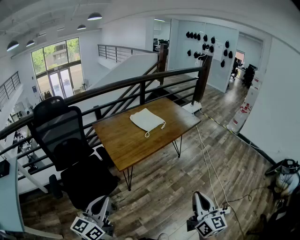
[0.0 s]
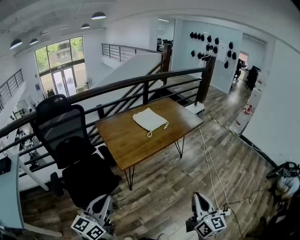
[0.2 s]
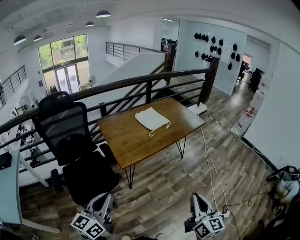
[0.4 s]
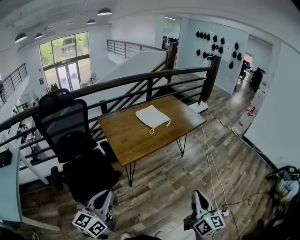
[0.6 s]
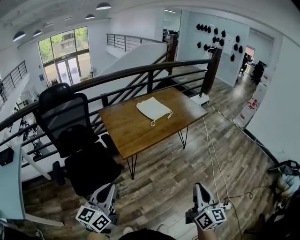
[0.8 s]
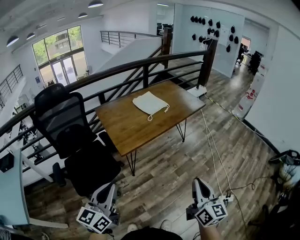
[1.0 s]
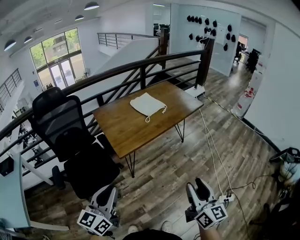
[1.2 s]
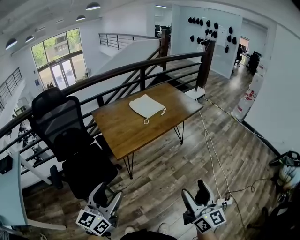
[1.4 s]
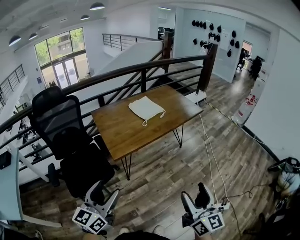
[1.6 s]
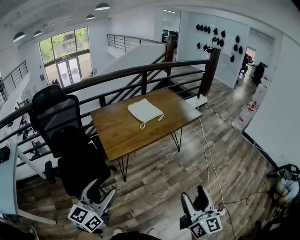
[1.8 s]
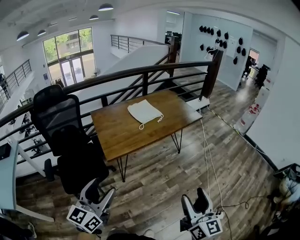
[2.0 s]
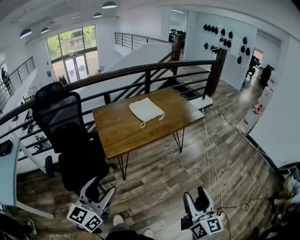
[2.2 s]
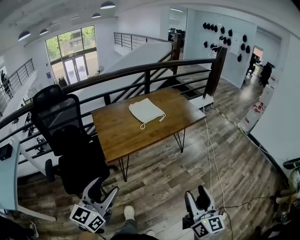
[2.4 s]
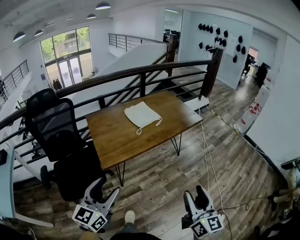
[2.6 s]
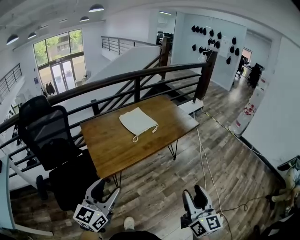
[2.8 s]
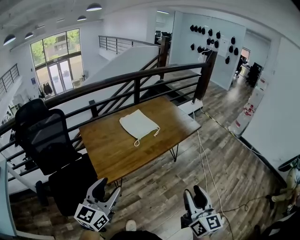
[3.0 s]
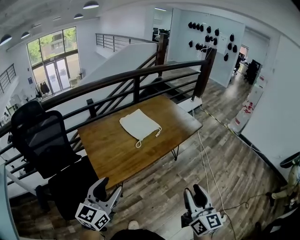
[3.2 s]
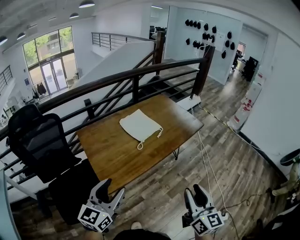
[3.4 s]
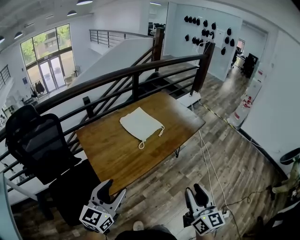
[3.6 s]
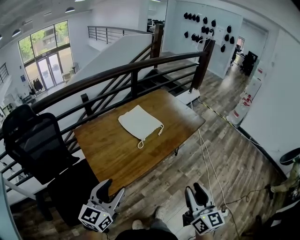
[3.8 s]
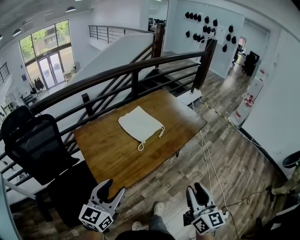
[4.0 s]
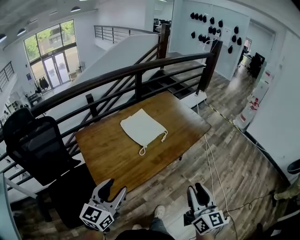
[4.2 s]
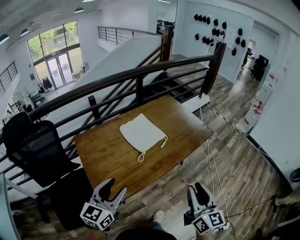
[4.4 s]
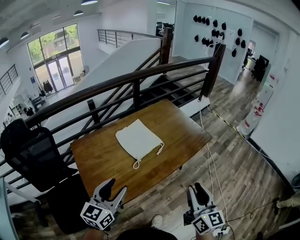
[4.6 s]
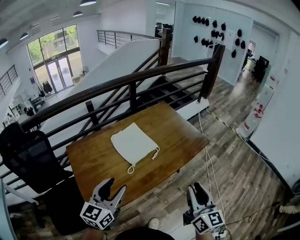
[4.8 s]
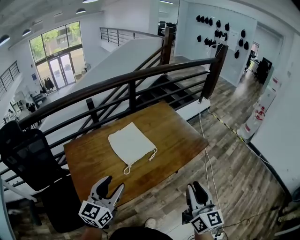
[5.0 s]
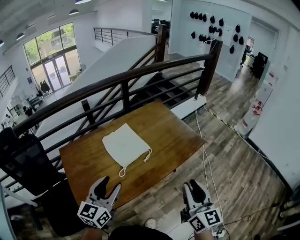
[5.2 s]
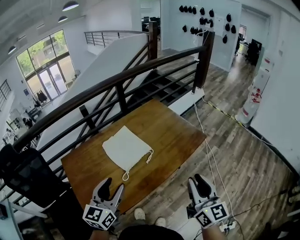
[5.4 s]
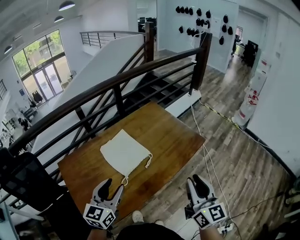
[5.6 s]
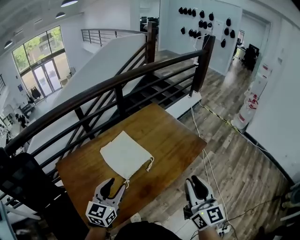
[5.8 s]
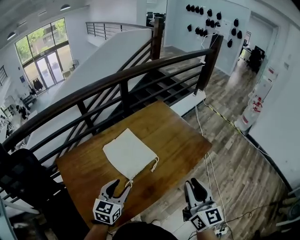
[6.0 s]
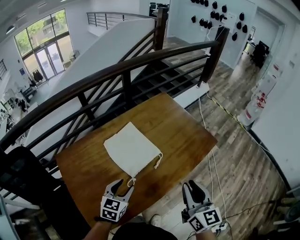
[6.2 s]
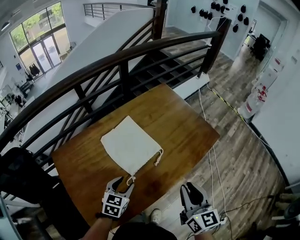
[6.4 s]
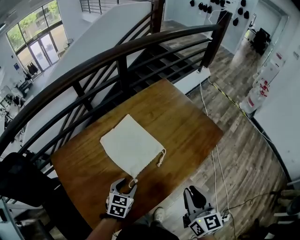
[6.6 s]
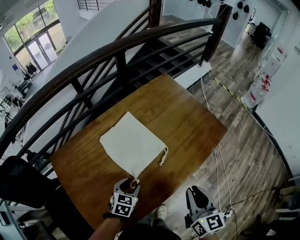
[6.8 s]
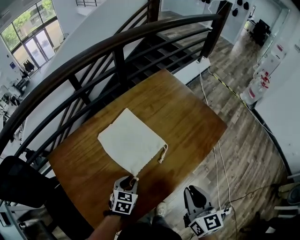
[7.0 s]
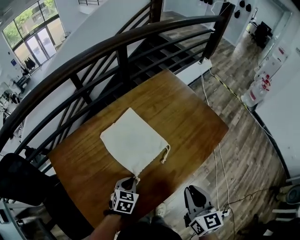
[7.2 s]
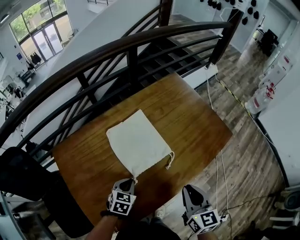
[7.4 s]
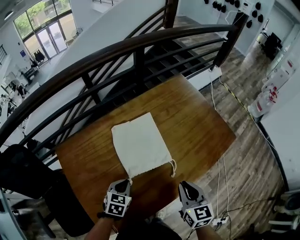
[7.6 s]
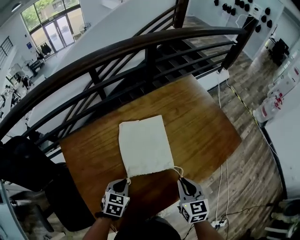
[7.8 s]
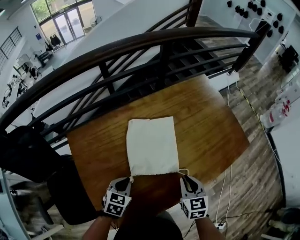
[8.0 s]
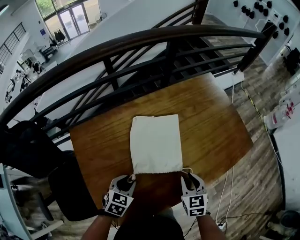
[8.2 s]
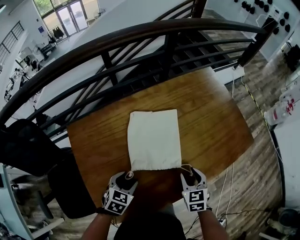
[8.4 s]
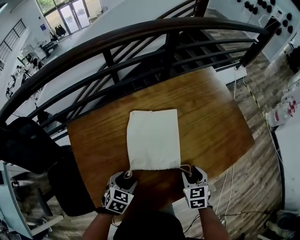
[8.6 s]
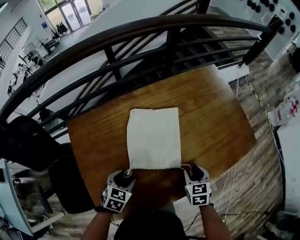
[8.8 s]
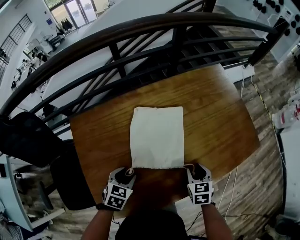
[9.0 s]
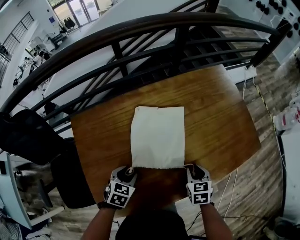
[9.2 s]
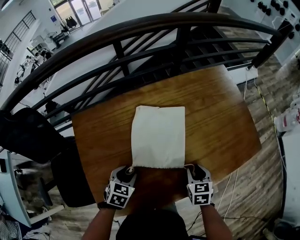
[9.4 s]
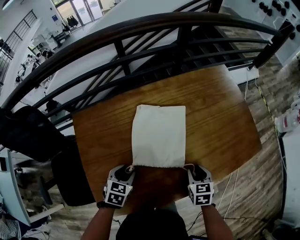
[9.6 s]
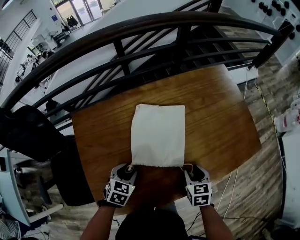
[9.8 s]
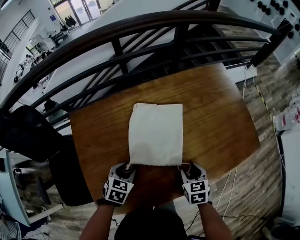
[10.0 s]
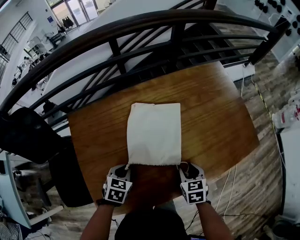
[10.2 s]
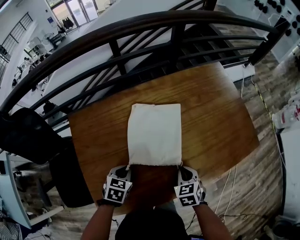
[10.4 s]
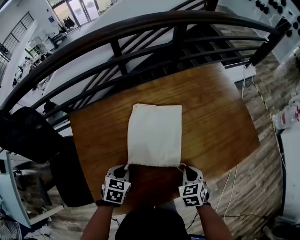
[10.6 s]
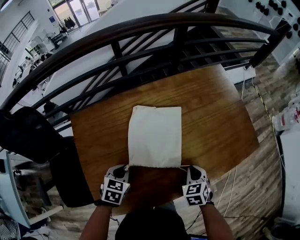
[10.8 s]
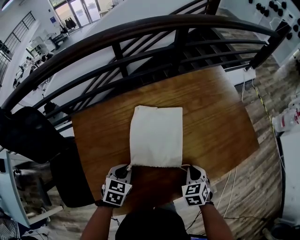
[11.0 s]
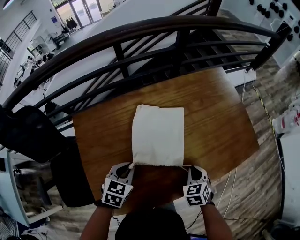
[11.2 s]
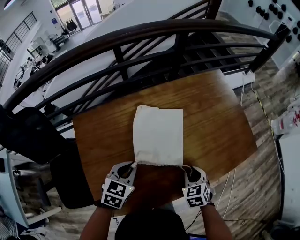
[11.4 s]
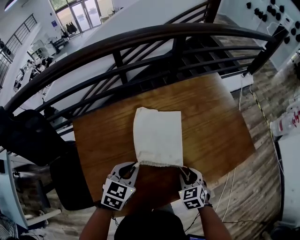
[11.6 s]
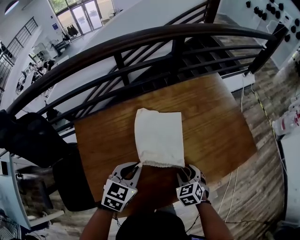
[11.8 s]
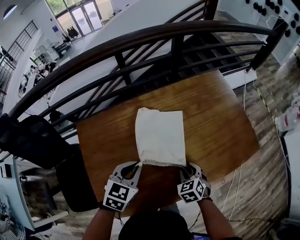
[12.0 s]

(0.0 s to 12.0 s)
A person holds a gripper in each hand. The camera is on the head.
0.0 s - 1.6 s: The right gripper opens up. Meanwhile the left gripper travels to the right by some 5 cm, and opens up.
1.6 s - 3.0 s: Both grippers move forward, about 20 cm. The right gripper closes up.
3.0 s - 4.4 s: The two grippers go roughly 20 cm forward.
4.4 s - 6.0 s: The left gripper travels forward and downward by about 25 cm. The right gripper shifts roughly 20 cm forward.
6.0 s - 7.6 s: Both grippers travel together downward and to the left, roughly 20 cm. The right gripper changes its angle by about 30 degrees, while the left gripper changes its angle by about 30 degrees, and closes up.
7.6 s - 9.0 s: The right gripper moves downward and forward, about 15 cm, turns by approximately 30 degrees, and opens its fingers, while the left gripper is displaced to the left by approximately 5 cm, and opens.
9.0 s - 10.4 s: The right gripper shifts by some 5 cm, and closes its fingers. Meanwhile the left gripper closes up.
10.4 s - 12.0 s: The right gripper opens its fingers; the left gripper shifts roughly 15 cm upward and forward, and turns by roughly 20 degrees.

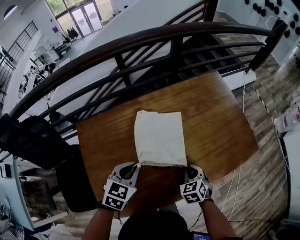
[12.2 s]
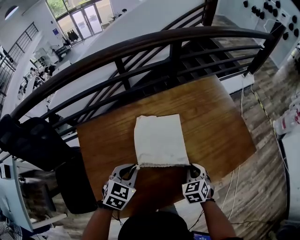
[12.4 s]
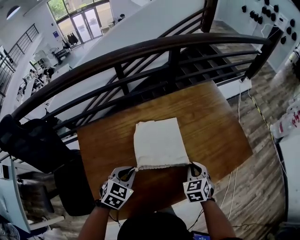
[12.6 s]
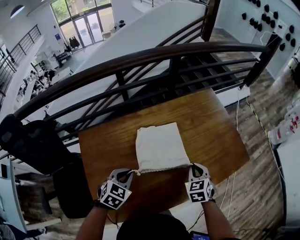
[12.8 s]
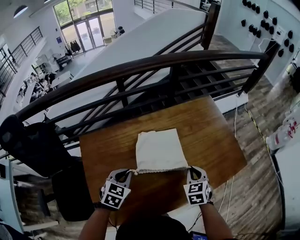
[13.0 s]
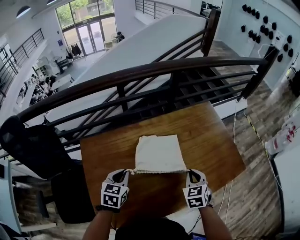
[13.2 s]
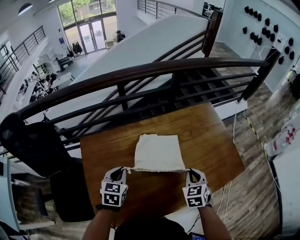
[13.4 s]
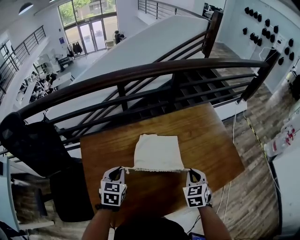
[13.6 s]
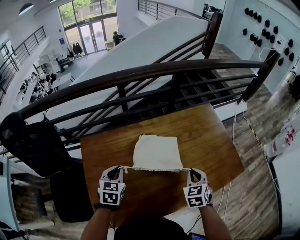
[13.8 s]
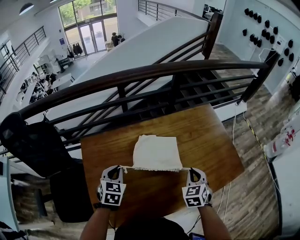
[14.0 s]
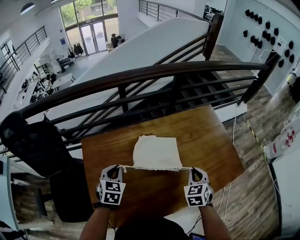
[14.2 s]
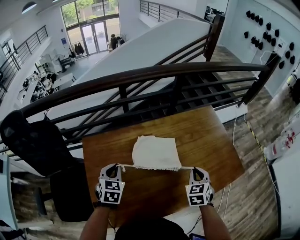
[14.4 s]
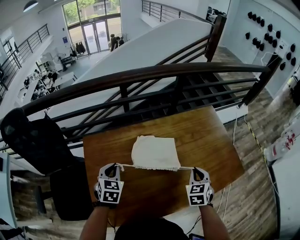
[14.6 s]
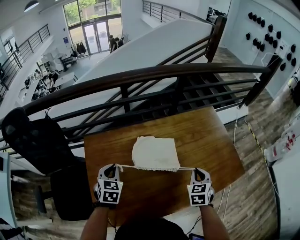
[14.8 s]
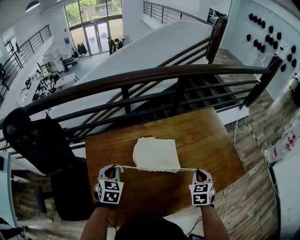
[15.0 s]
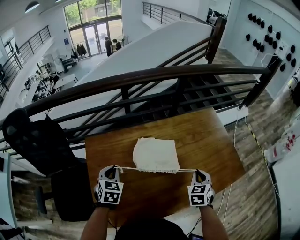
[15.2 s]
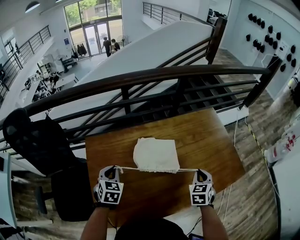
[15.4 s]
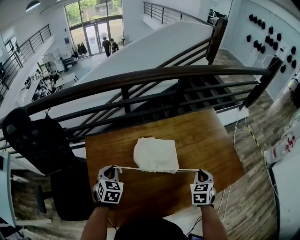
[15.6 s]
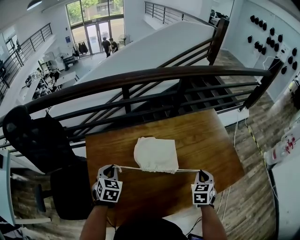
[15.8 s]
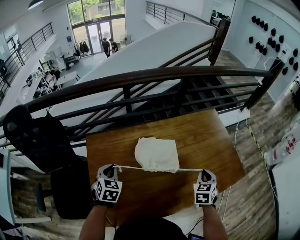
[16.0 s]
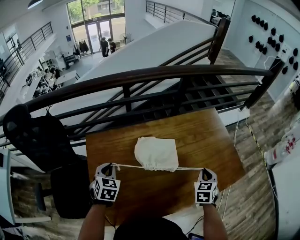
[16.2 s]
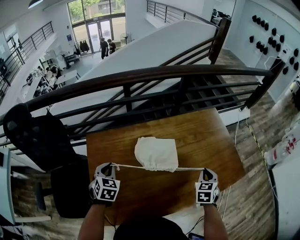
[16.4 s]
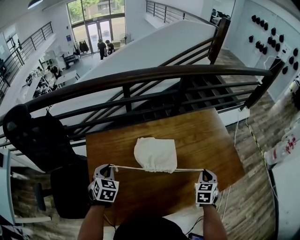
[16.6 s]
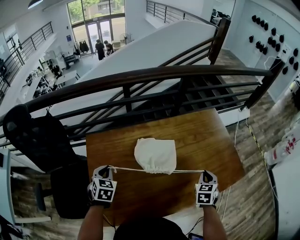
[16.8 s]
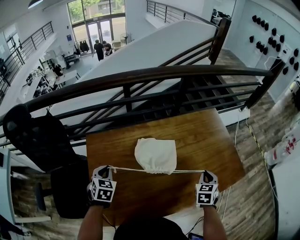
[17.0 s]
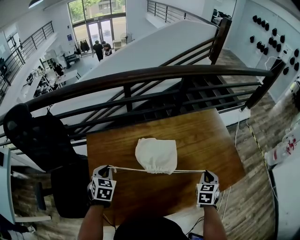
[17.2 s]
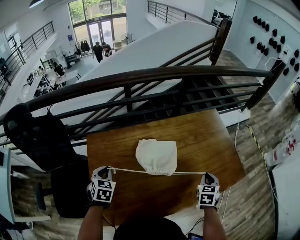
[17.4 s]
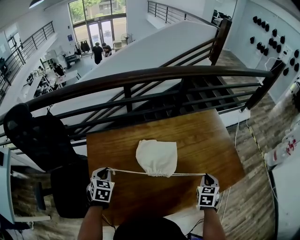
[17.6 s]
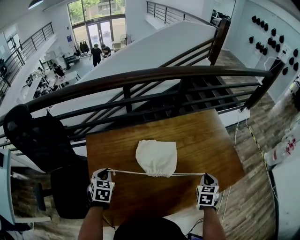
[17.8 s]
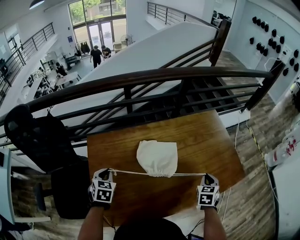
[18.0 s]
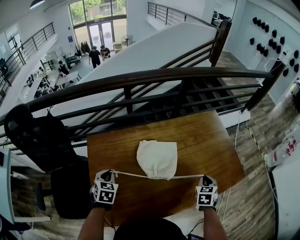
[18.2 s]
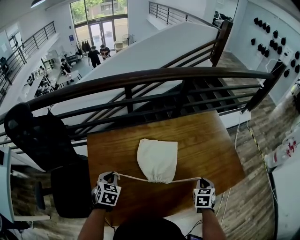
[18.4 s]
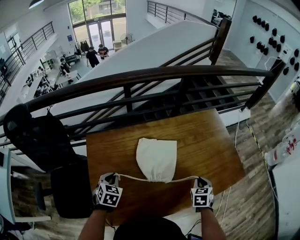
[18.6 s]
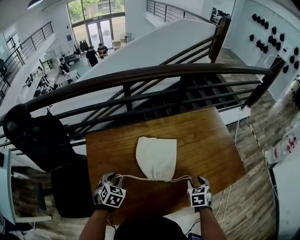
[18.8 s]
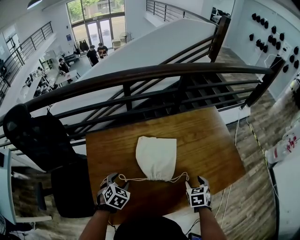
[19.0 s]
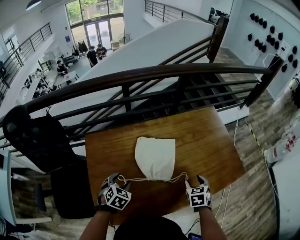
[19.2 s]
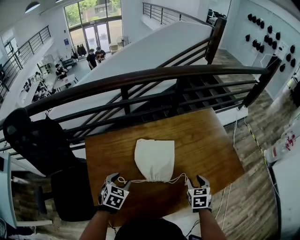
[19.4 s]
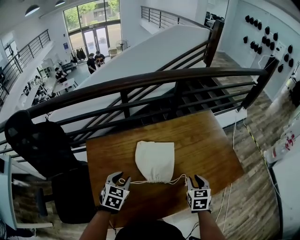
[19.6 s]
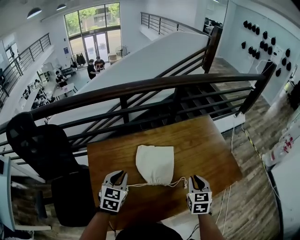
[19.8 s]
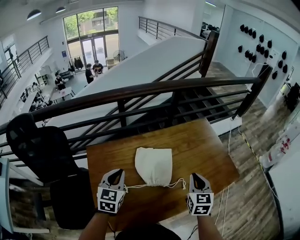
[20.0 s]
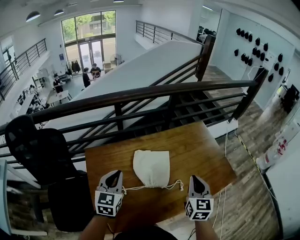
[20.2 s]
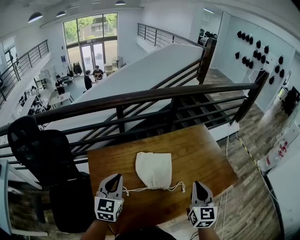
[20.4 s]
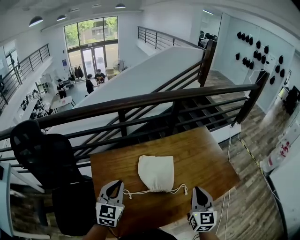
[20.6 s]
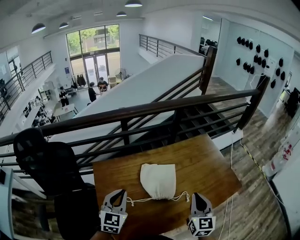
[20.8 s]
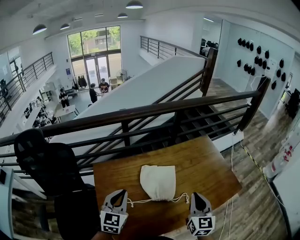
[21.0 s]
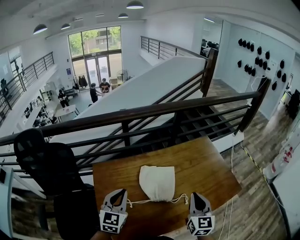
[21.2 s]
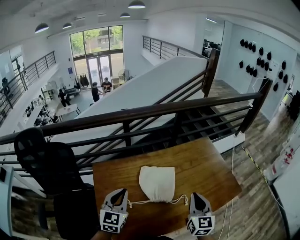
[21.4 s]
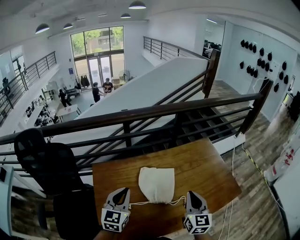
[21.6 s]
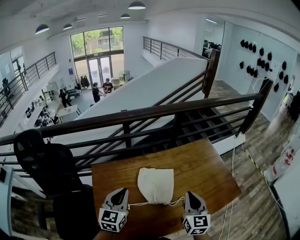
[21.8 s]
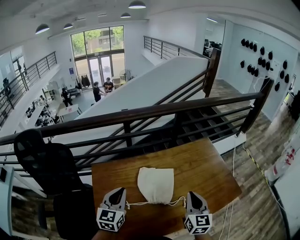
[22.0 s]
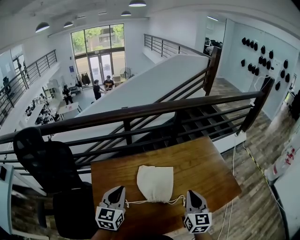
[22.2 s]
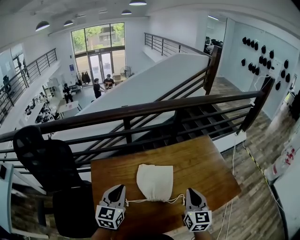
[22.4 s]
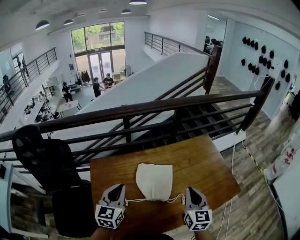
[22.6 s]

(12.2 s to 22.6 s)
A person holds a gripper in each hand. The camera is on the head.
12.2 s - 13.6 s: The right gripper moves upward and forward, approximately 15 cm. Meanwhile the left gripper goes approximately 10 cm to the left, and rotates some 20 degrees.
13.6 s - 15.2 s: The left gripper shifts roughly 5 cm to the left.
15.2 s - 18.2 s: The grippers stay close to where they were, moving slightly.
18.2 s - 19.6 s: The left gripper moves to the right, about 10 cm, and opens its fingers, while the right gripper shifts about 5 cm to the left, and opens.
19.6 s - 21.2 s: Both grippers move upward, about 15 cm. The left gripper rotates approximately 30 degrees, and closes its fingers. Meanwhile the right gripper tilts its fingers roughly 30 degrees upward, and closes.
21.2 s - 22.6 s: The grippers move only a little.

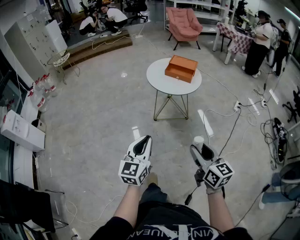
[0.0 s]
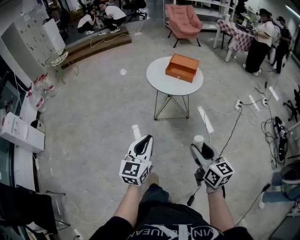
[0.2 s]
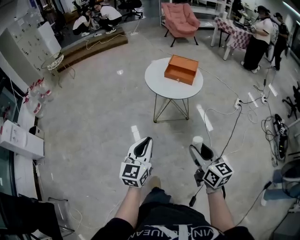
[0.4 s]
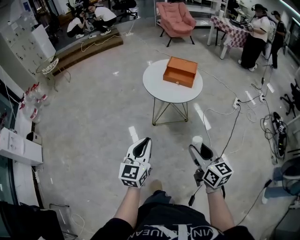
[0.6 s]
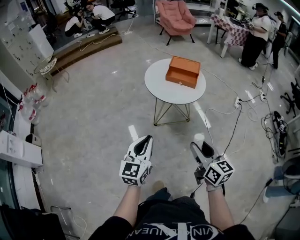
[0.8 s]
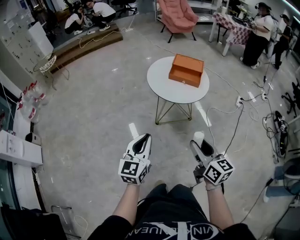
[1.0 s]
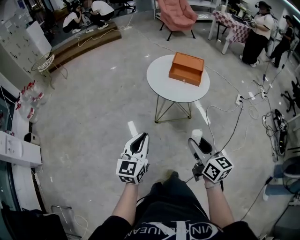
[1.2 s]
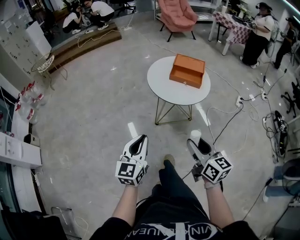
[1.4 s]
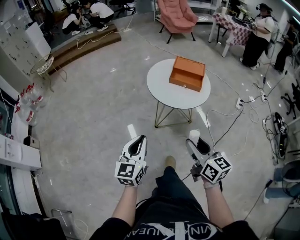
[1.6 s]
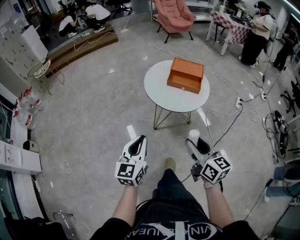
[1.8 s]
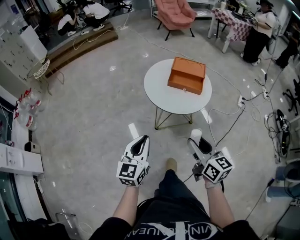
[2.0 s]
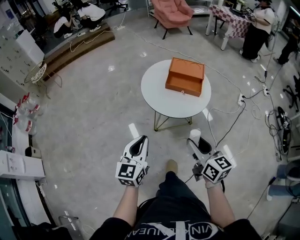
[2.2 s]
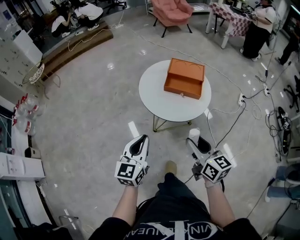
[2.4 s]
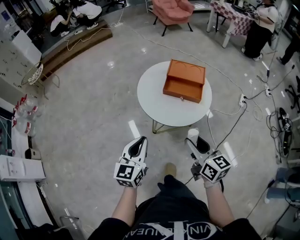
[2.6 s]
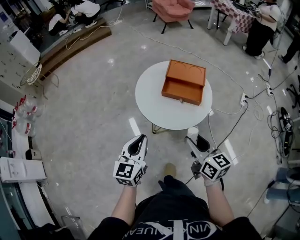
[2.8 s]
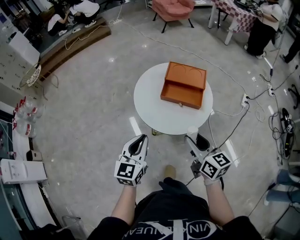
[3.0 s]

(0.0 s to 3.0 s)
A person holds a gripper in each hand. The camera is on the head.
0.0 s - 1.6 s: Both grippers travel together forward, some 25 cm.
1.6 s - 3.0 s: Both grippers move forward, about 25 cm.
